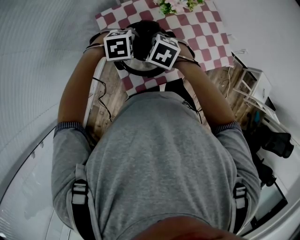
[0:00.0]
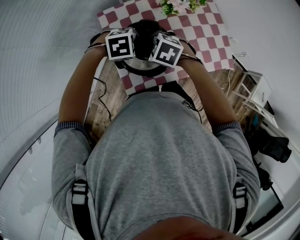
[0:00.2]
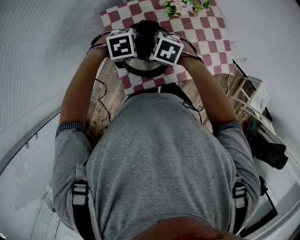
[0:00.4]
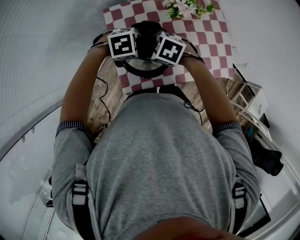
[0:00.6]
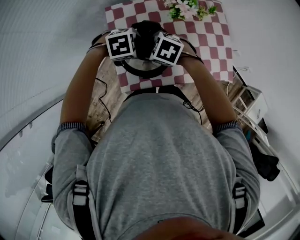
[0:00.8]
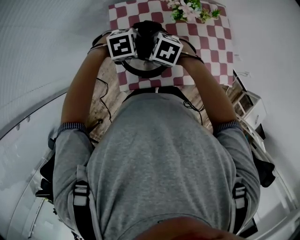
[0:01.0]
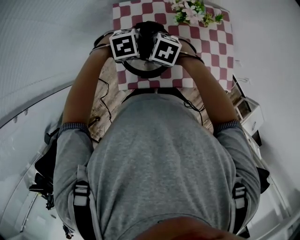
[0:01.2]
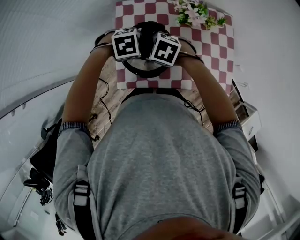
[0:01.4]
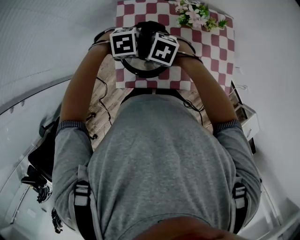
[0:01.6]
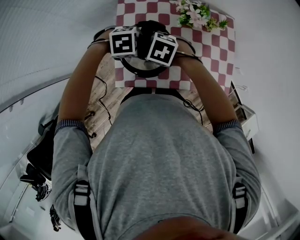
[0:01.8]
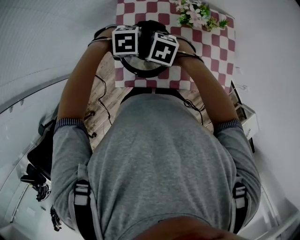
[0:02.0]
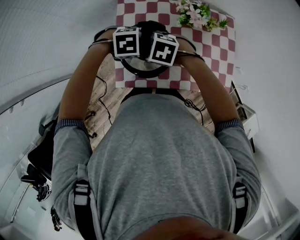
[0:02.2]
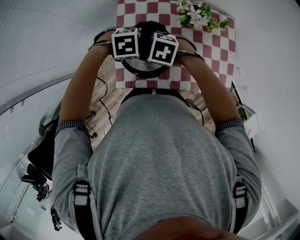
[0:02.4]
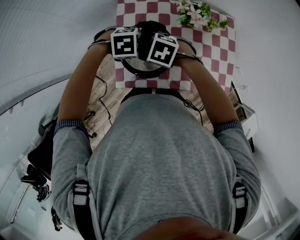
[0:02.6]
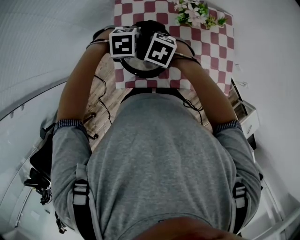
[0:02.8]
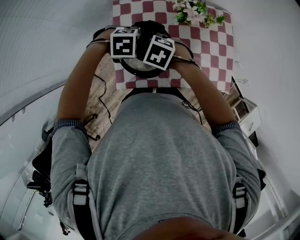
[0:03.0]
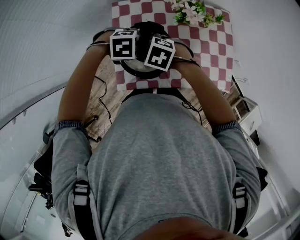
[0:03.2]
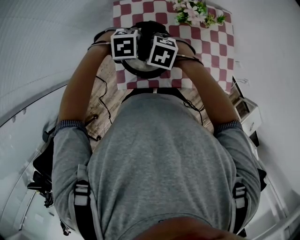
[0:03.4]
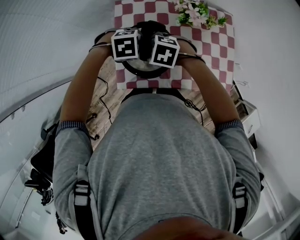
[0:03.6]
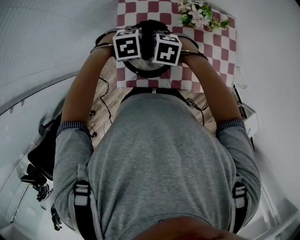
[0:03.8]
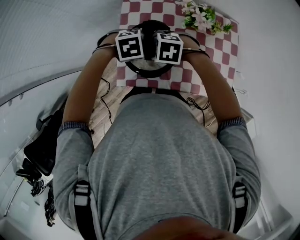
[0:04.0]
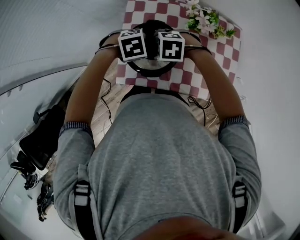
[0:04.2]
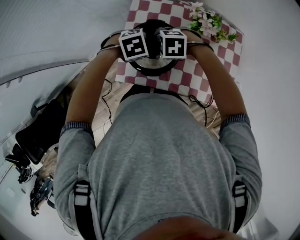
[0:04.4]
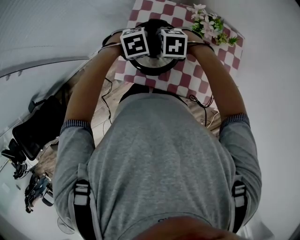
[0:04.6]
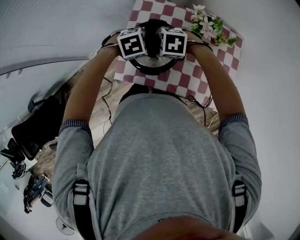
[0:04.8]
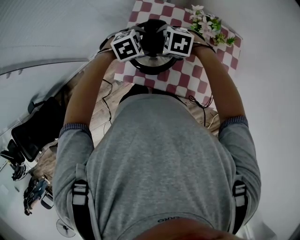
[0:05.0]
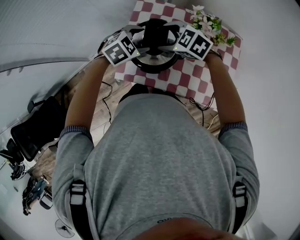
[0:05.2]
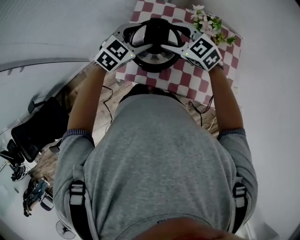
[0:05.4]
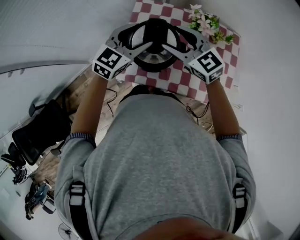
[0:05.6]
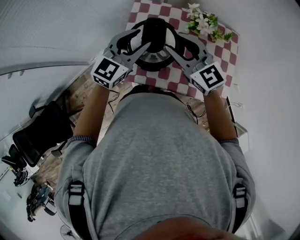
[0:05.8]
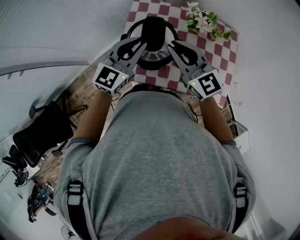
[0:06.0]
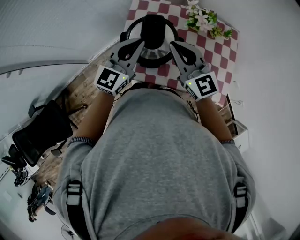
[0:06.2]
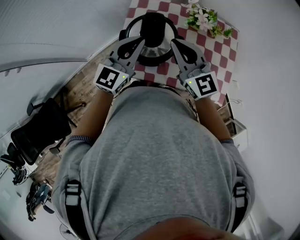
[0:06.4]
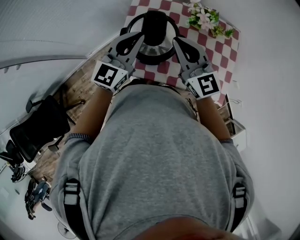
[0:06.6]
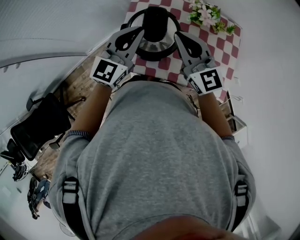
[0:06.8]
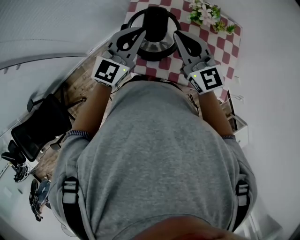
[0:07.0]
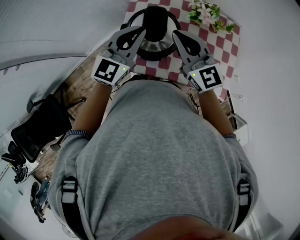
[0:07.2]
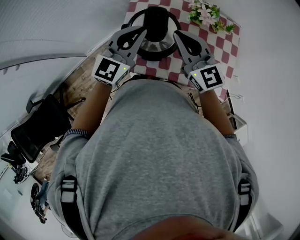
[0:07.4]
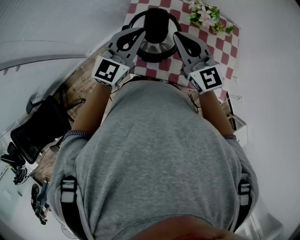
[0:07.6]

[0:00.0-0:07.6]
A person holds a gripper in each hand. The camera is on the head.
0:00.0 to 0:01.6: The right gripper turns by roughly 30 degrees, while the left gripper turns by about 20 degrees.
0:01.6 to 0:03.0: The grippers make only small movements.
0:03.0 to 0:04.6: The left gripper swivels roughly 30 degrees. The right gripper swivels some 40 degrees.
0:04.6 to 0:06.0: The grippers both shift upward by approximately 15 cm. The left gripper tips its fingers upward by some 60 degrees, and closes up. Meanwhile the right gripper angles its fingers upward, by about 60 degrees, and closes its fingers.
0:06.0 to 0:07.6: The grippers stay close to where they were, moving slightly.

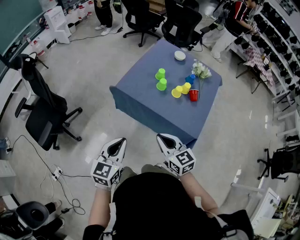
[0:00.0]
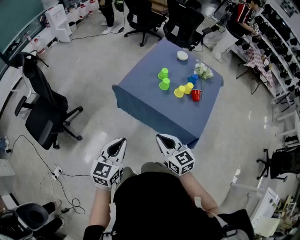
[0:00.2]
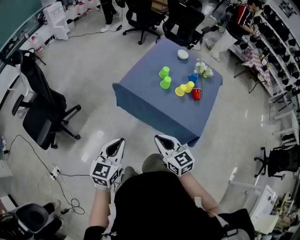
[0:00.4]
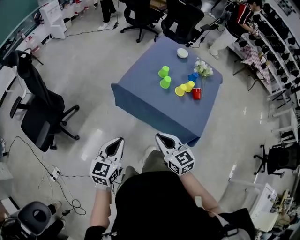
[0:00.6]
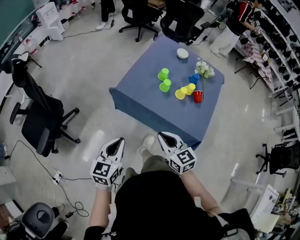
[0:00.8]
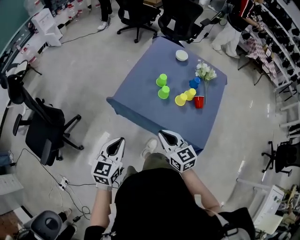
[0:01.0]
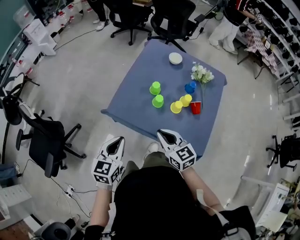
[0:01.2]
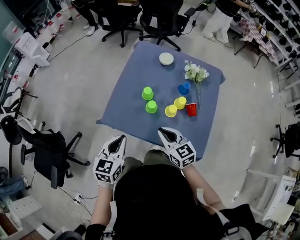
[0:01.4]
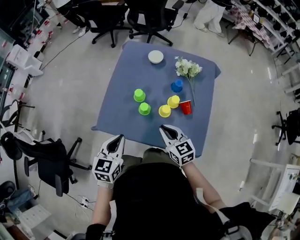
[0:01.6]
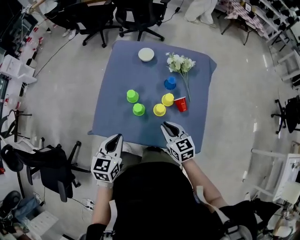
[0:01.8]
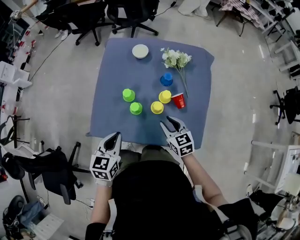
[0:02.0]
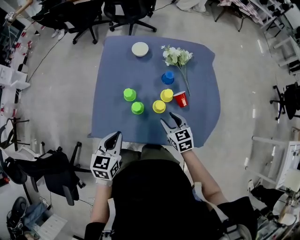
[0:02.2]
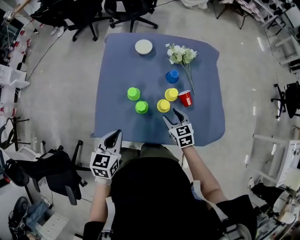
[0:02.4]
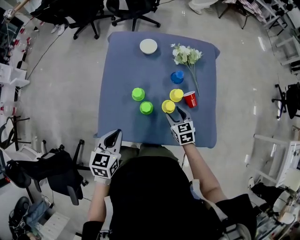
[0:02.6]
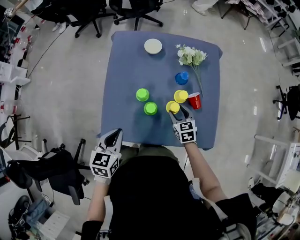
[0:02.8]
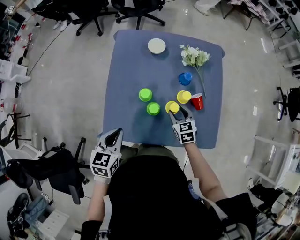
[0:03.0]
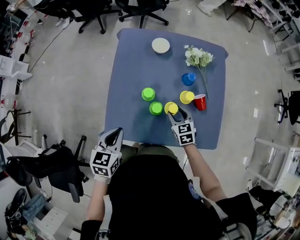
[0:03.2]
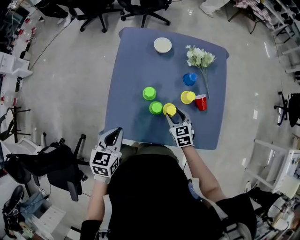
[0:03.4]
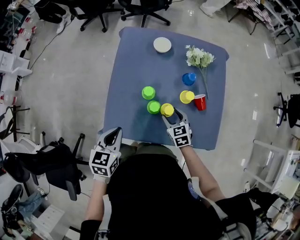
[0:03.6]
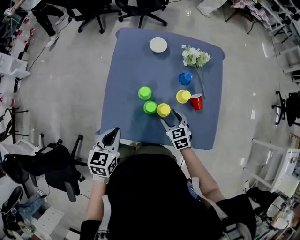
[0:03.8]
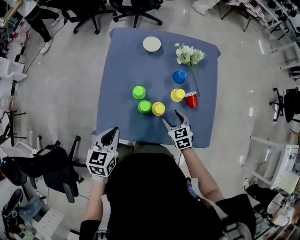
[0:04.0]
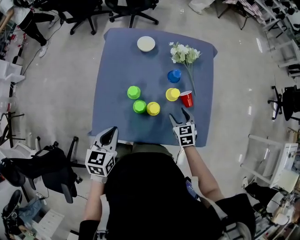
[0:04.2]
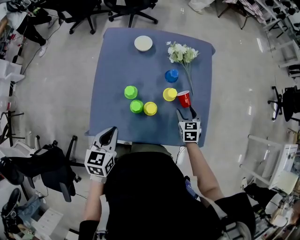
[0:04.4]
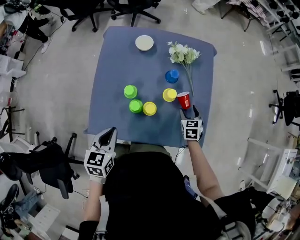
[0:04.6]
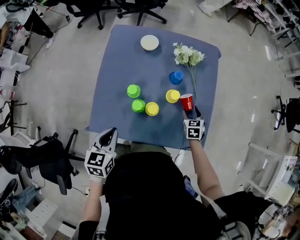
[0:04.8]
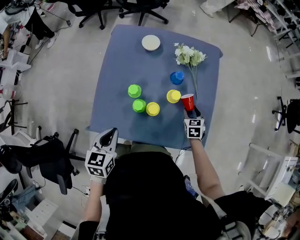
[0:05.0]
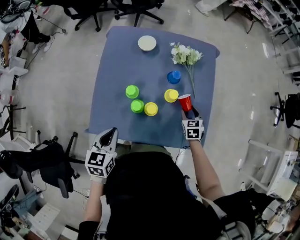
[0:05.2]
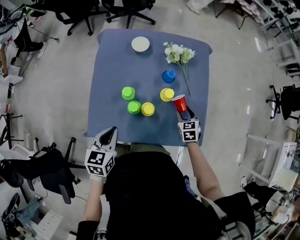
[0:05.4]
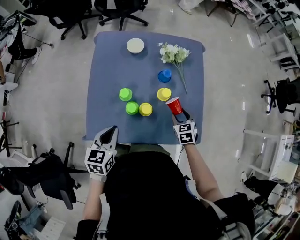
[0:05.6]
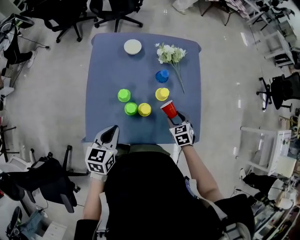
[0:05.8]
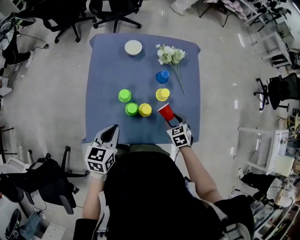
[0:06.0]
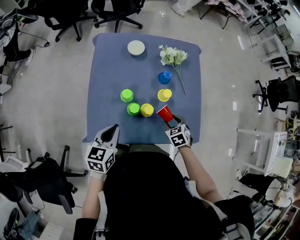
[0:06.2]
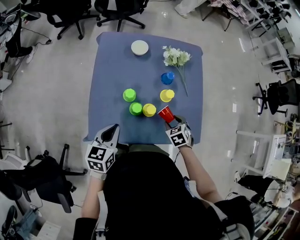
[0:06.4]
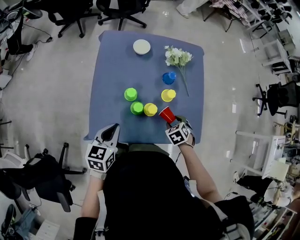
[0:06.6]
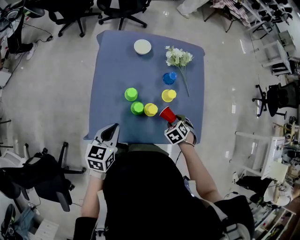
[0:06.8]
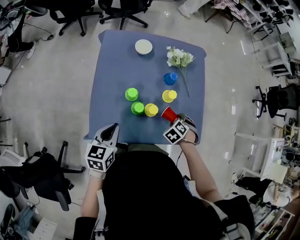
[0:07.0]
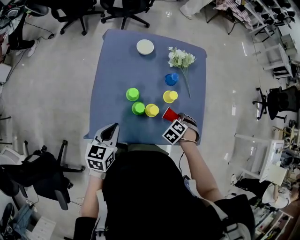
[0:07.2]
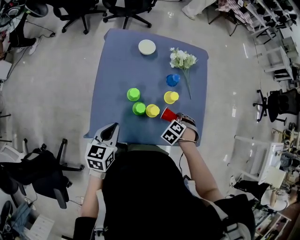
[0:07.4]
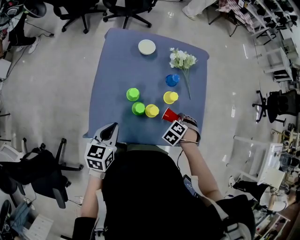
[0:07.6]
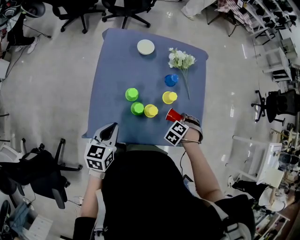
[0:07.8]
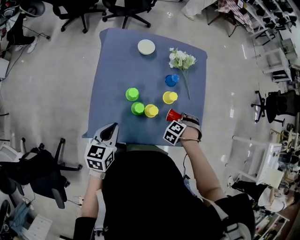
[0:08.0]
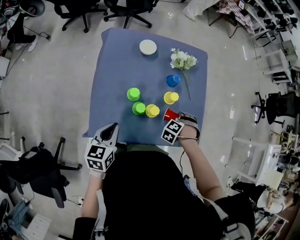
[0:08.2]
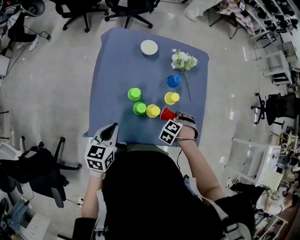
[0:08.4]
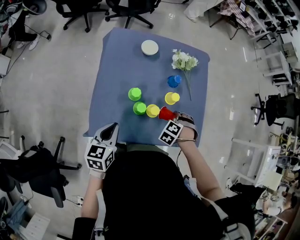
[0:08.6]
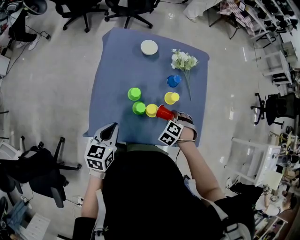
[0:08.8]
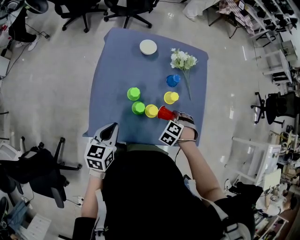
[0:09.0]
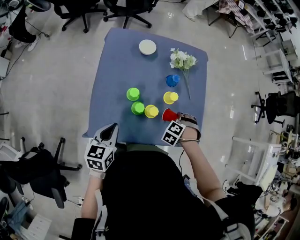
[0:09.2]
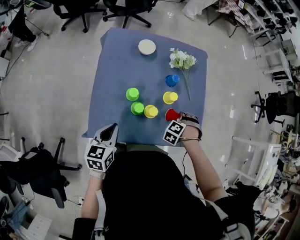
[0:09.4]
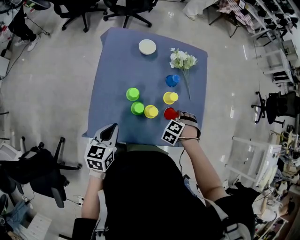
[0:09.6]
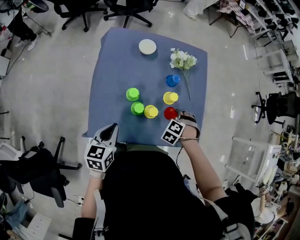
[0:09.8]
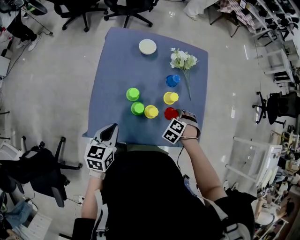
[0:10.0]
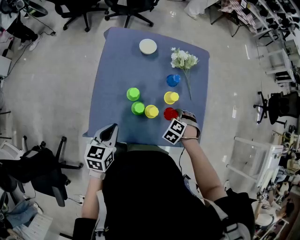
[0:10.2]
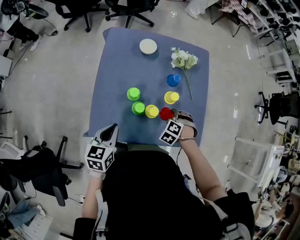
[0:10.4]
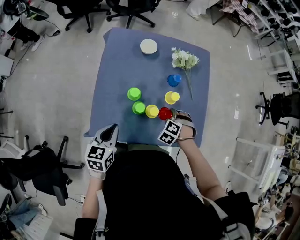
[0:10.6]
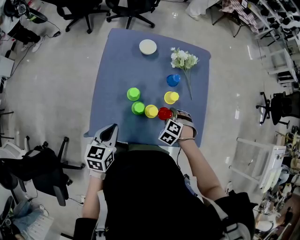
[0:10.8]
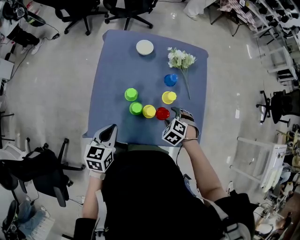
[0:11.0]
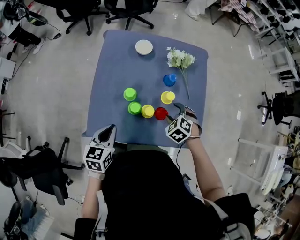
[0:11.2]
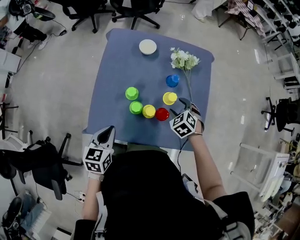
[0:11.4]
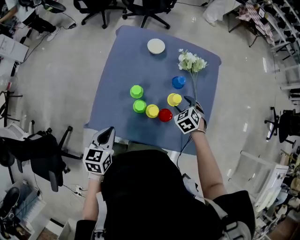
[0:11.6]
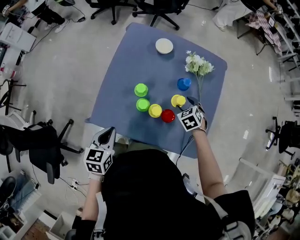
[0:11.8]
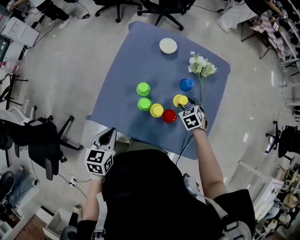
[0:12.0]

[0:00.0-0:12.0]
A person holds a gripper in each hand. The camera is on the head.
0:00.0 to 0:01.6: The right gripper travels forward and to the right by approximately 30 cm. Meanwhile the left gripper moves forward, about 30 cm.
0:01.6 to 0:03.0: The right gripper is displaced downward and forward by about 20 cm, rotates roughly 30 degrees, and opens up, while the left gripper goes some 10 cm forward and to the left.
0:03.0 to 0:04.4: The right gripper heads to the right, covering approximately 15 cm; the left gripper heads to the right, covering roughly 5 cm.
0:04.4 to 0:06.0: The right gripper heads backward, covering roughly 5 cm.
0:06.0 to 0:07.6: The right gripper rotates roughly 50 degrees.
0:07.6 to 0:10.4: There are only small adjustments of the grippers.
0:10.4 to 0:12.0: The left gripper moves some 5 cm. The right gripper changes place by roughly 10 cm, and rotates some 30 degrees.

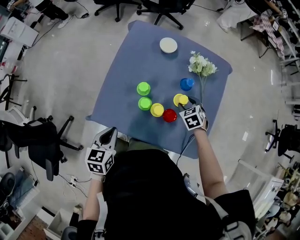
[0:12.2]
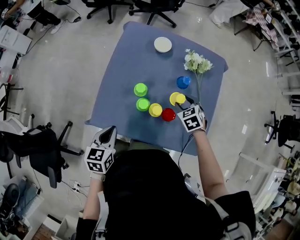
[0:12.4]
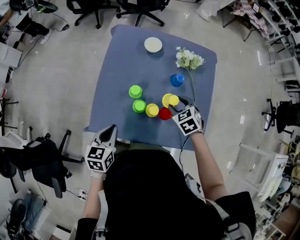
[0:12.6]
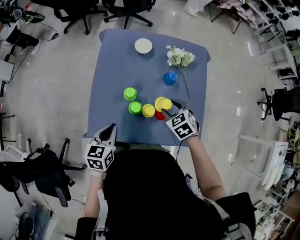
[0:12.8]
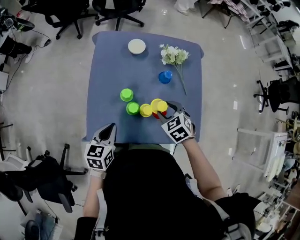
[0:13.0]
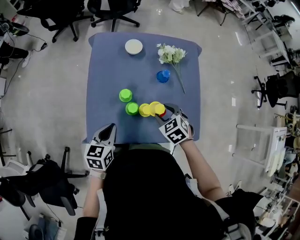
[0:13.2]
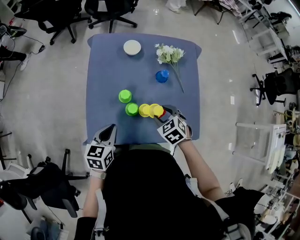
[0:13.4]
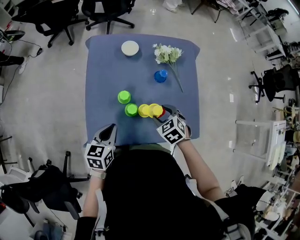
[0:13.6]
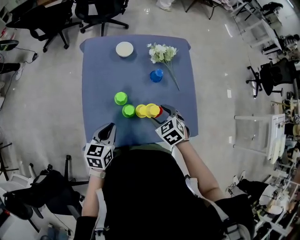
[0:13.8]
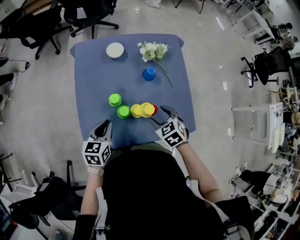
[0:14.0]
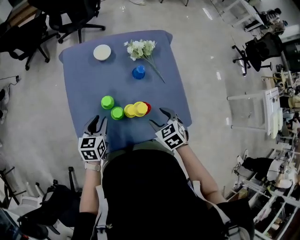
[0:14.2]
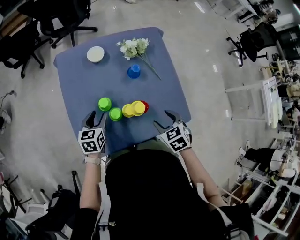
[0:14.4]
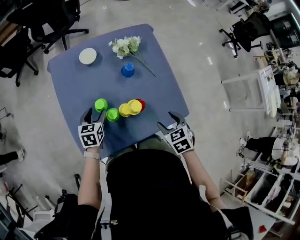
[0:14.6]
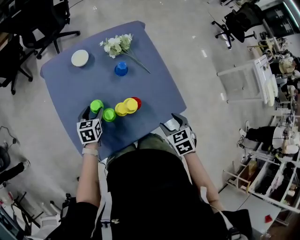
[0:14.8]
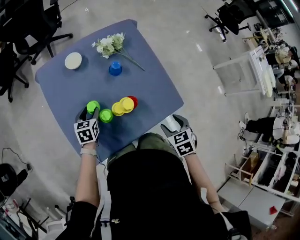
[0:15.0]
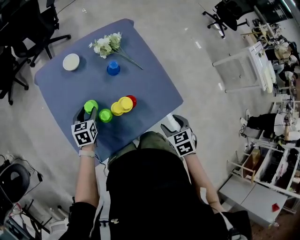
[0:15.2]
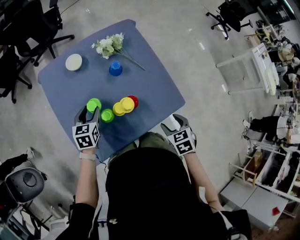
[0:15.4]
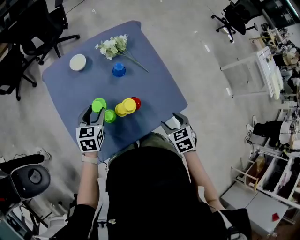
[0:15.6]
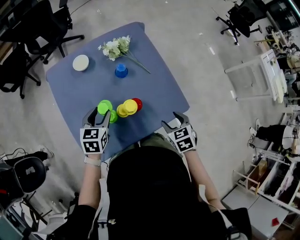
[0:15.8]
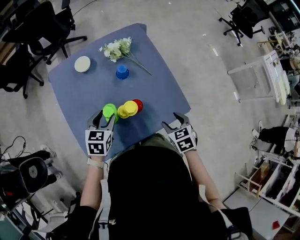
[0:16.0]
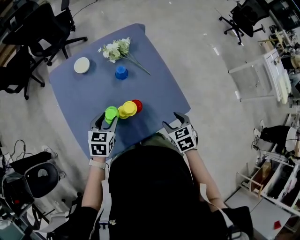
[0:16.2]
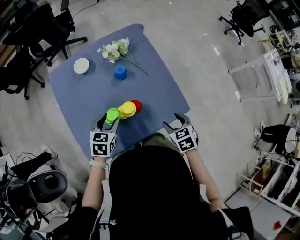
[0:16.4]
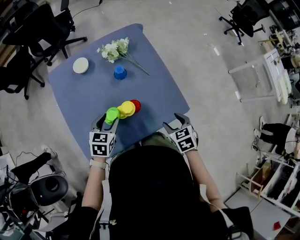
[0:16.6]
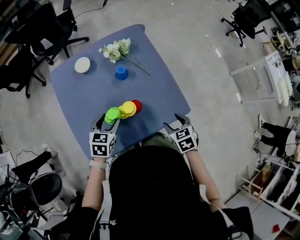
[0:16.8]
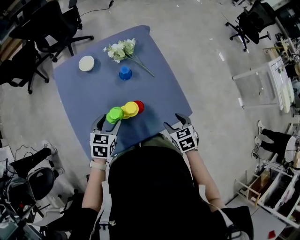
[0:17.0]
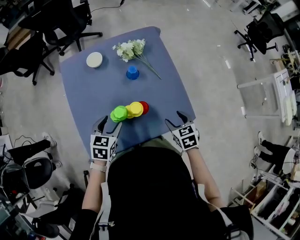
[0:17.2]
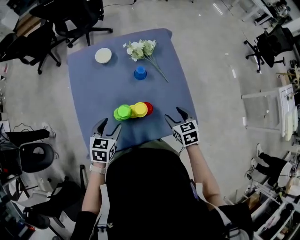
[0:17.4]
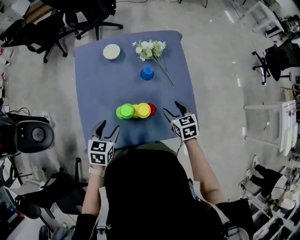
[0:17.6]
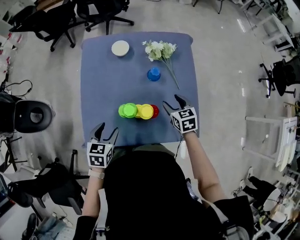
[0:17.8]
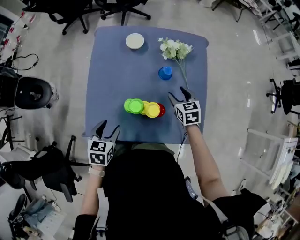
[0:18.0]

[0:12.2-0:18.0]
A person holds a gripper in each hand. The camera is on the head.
0:12.2 to 0:13.6: The left gripper goes approximately 10 cm forward, and rotates approximately 20 degrees; the right gripper shifts some 15 cm backward, to the left and upward.
0:13.6 to 0:15.0: The right gripper travels to the right and backward by approximately 20 cm, and turns by approximately 40 degrees. Meanwhile the left gripper travels forward and downward by approximately 20 cm, and opens up.
0:15.0 to 0:16.6: The left gripper goes roughly 15 cm to the right and upward.
0:16.6 to 0:18.0: The right gripper changes place by some 25 cm, and changes its angle by some 30 degrees. The left gripper ends up some 10 cm from where it was, and turns by about 30 degrees.
